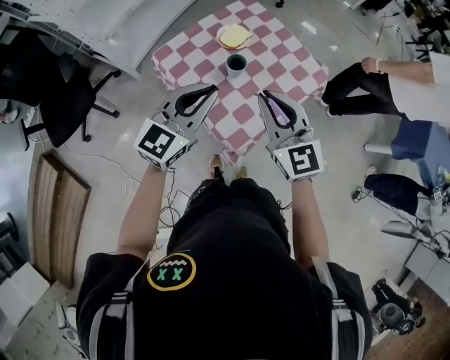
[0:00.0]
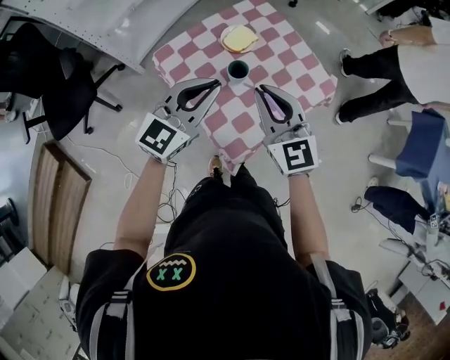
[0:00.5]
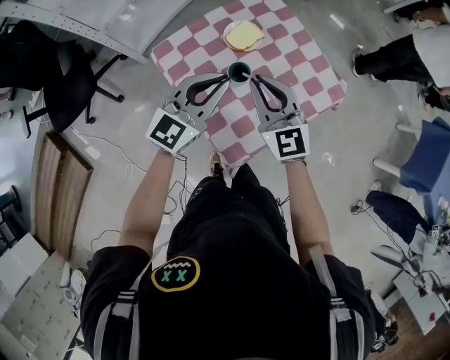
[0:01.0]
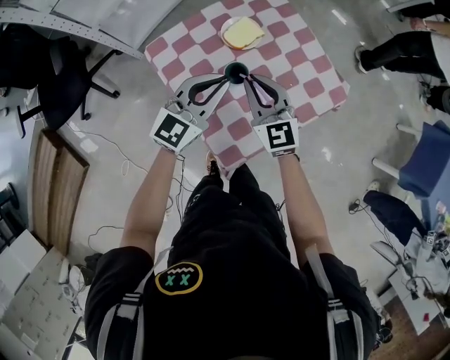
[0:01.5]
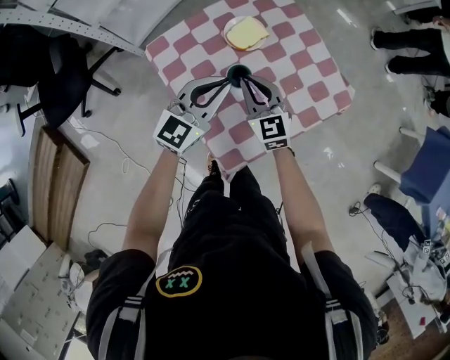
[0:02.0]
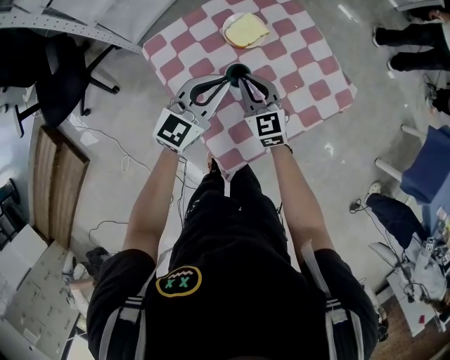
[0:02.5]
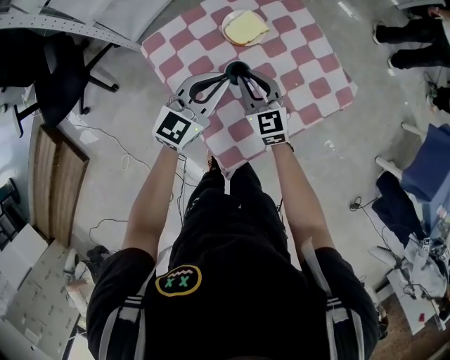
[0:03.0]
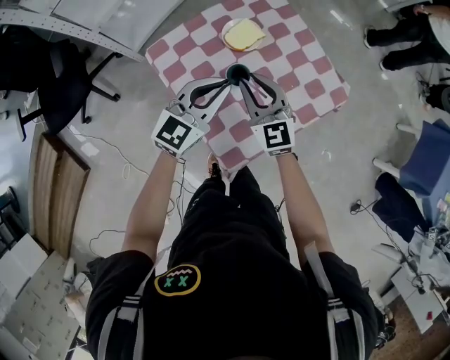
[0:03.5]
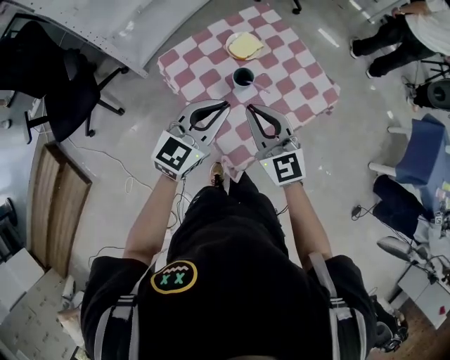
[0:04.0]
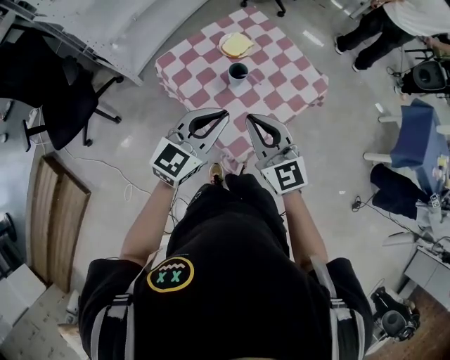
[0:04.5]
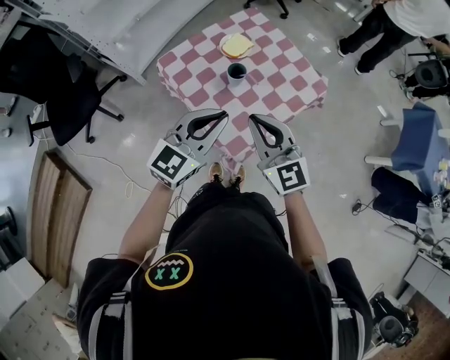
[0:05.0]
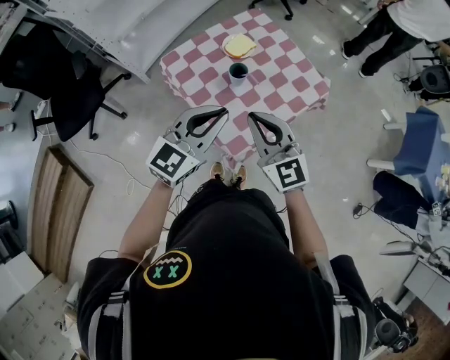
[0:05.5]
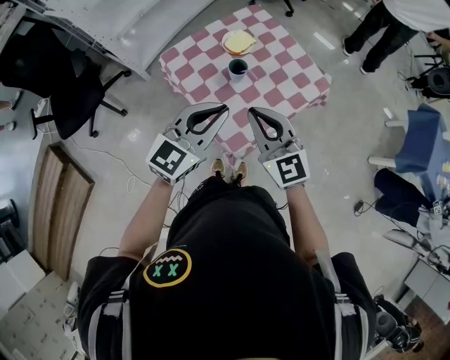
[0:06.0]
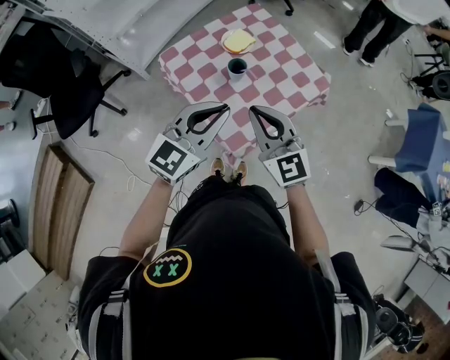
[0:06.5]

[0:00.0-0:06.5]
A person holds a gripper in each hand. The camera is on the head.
0:00.0 to 0:02.0: The left gripper goes roughly 20 cm forward and downward. The right gripper goes about 30 cm downward and forward.
0:02.0 to 0:04.5: Both grippers travel together backward and upward, approximately 25 cm.
0:04.5 to 0:06.5: The grippers stay close to where they were, moving slightly.

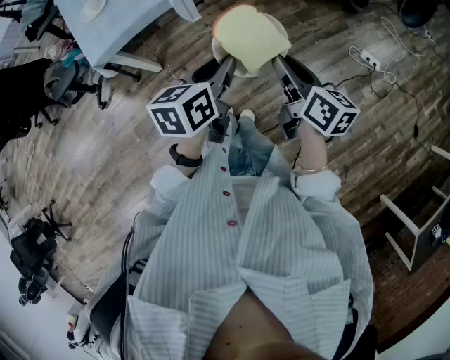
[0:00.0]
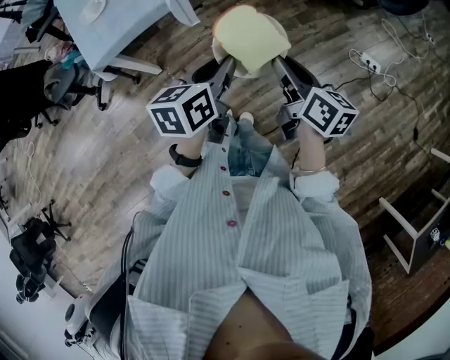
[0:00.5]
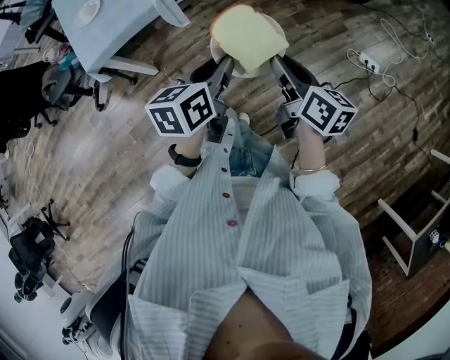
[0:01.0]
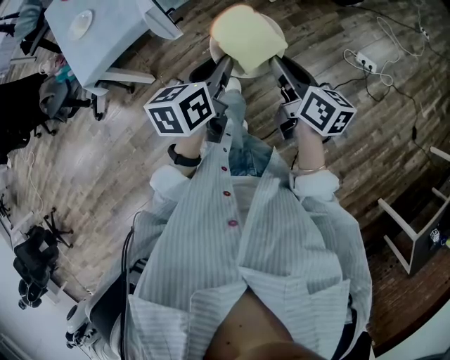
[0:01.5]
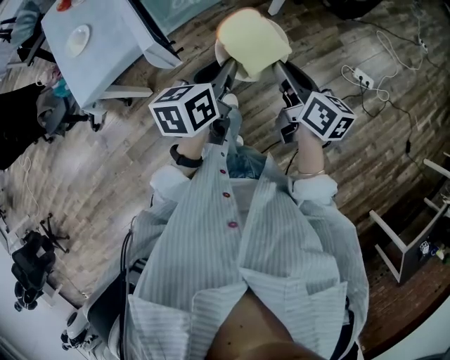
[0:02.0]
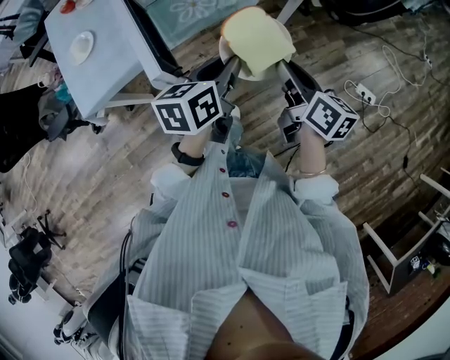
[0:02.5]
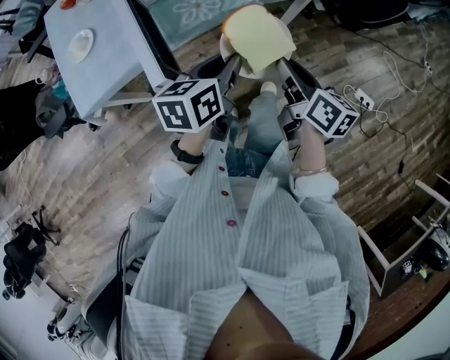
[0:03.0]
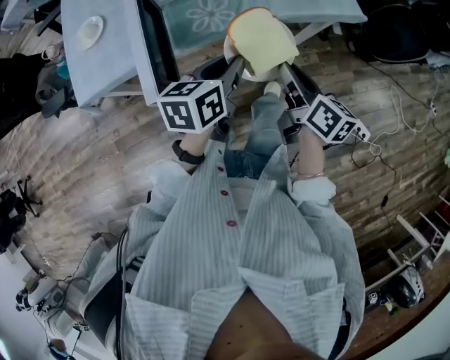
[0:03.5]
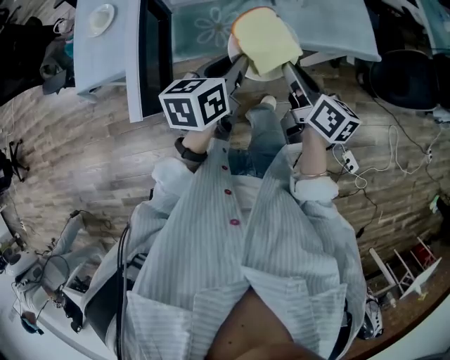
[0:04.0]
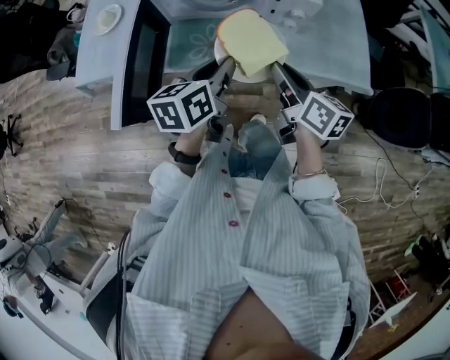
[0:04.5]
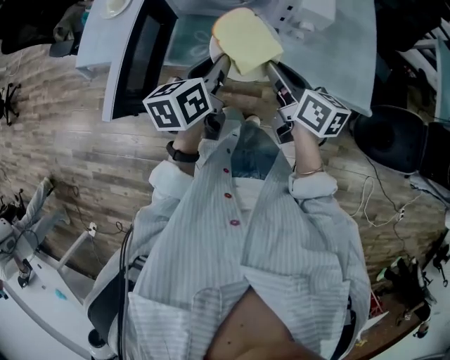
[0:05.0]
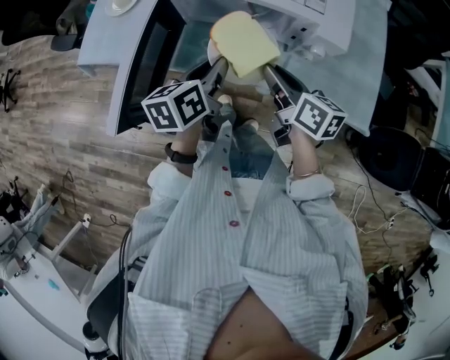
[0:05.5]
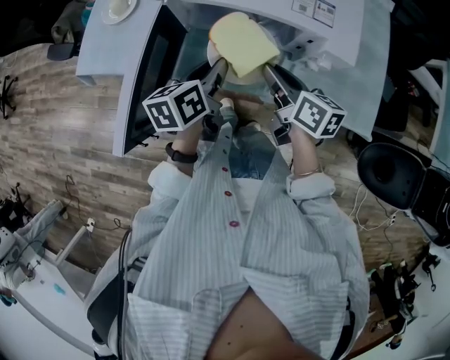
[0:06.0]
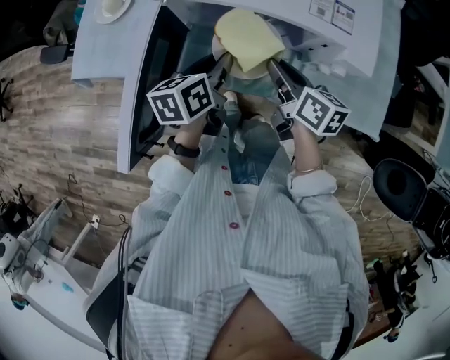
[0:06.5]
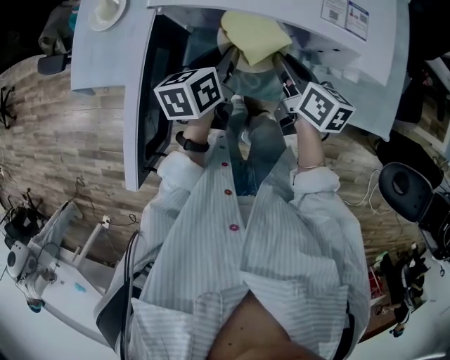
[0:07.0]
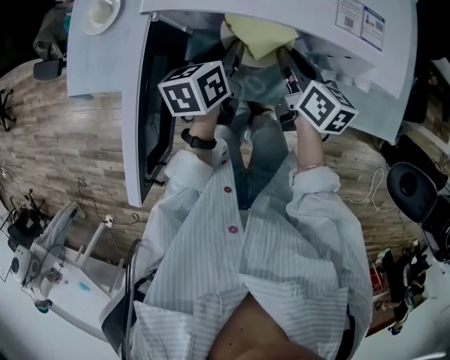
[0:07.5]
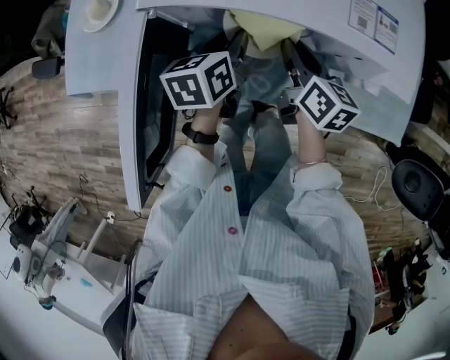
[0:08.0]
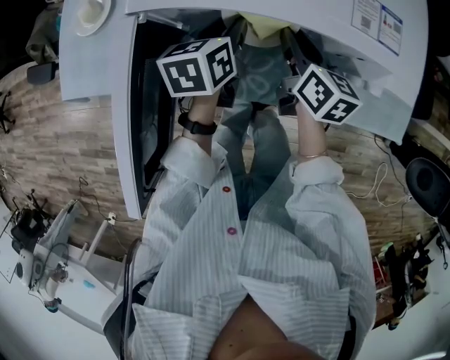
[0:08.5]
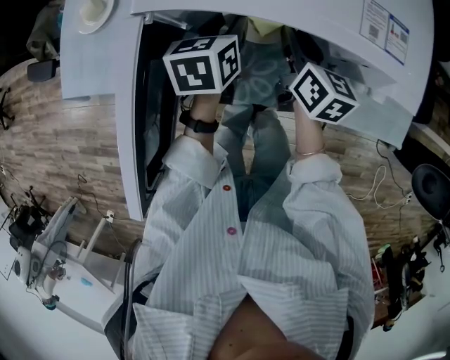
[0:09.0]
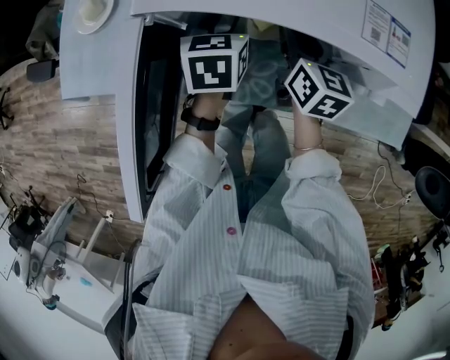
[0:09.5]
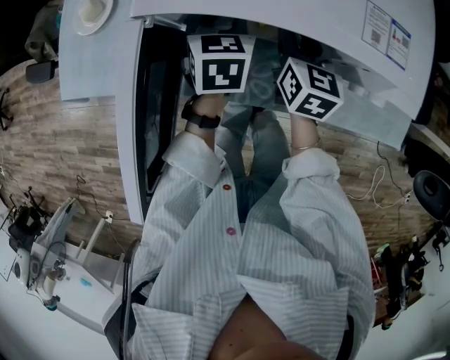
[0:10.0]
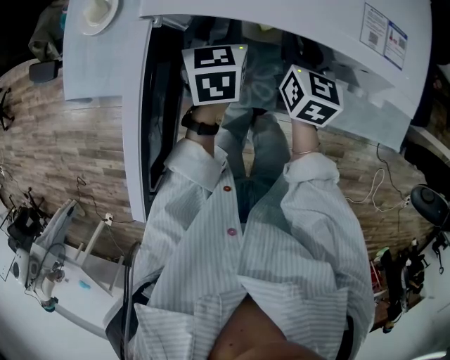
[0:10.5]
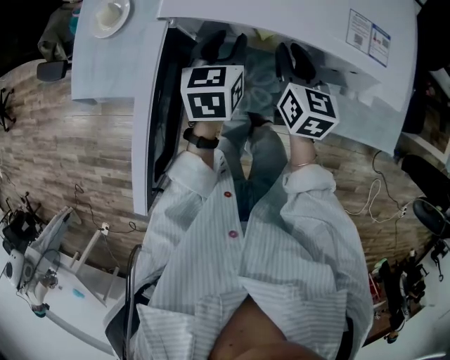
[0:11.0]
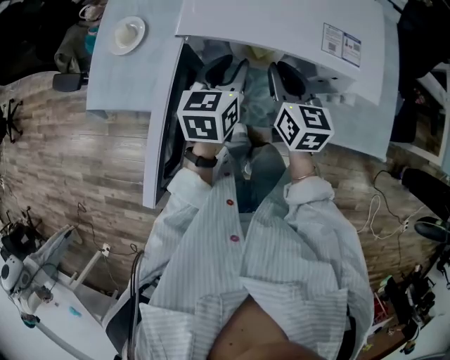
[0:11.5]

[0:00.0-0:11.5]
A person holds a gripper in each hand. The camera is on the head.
0:00.0 to 0:02.0: The two grippers go about 15 cm forward.
0:02.0 to 0:04.0: Both grippers travel together forward, some 25 cm. The right gripper turns by roughly 20 degrees; the left gripper rotates about 20 degrees.
0:04.0 to 0:06.0: The left gripper changes place by about 15 cm, and turns by about 30 degrees. Meanwhile the right gripper shifts by some 20 cm, and changes its angle by about 30 degrees.
0:06.0 to 0:07.5: Both grippers travel together forward and downward, approximately 10 cm.
0:07.5 to 0:09.5: Both grippers move forward, about 5 cm. The left gripper turns by about 30 degrees.
0:09.5 to 0:11.5: The two grippers go approximately 10 cm upward and backward.

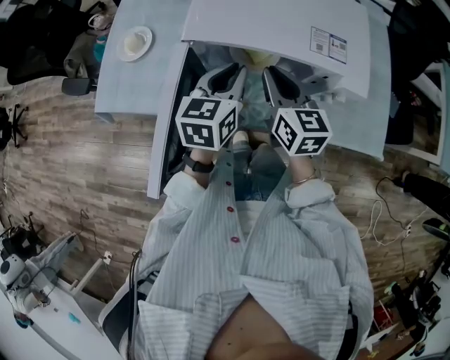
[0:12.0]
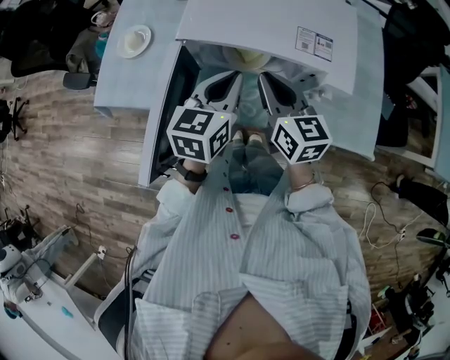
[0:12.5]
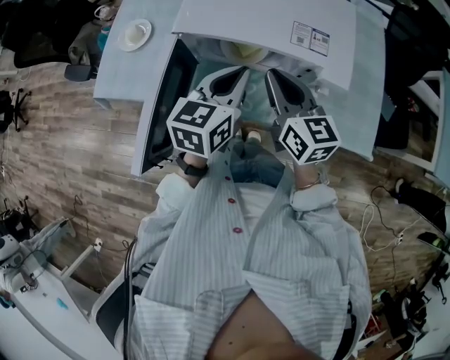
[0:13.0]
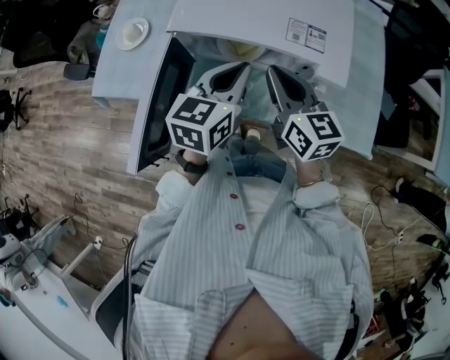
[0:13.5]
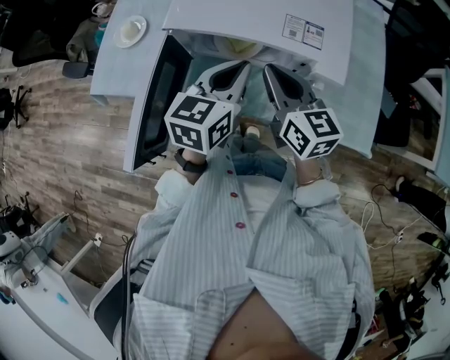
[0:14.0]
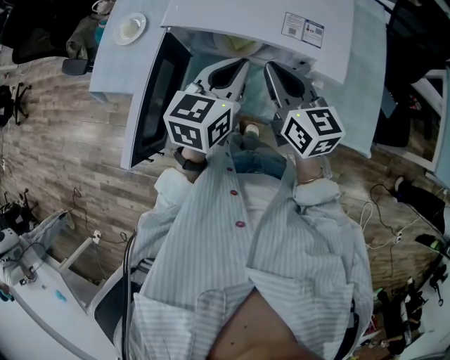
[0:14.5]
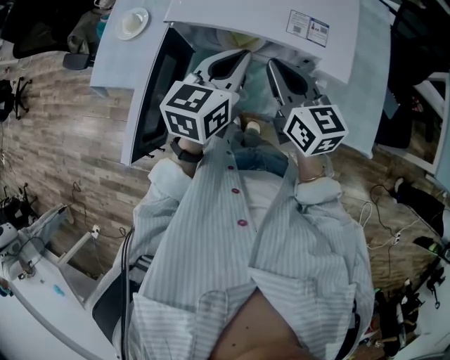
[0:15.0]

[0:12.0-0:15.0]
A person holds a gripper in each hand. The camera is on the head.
0:12.0 to 0:13.5: The left gripper heads to the right and upward, covering about 10 cm. Meanwhile the right gripper goes approximately 5 cm upward and to the right.
0:13.5 to 0:15.0: Neither gripper changes place.

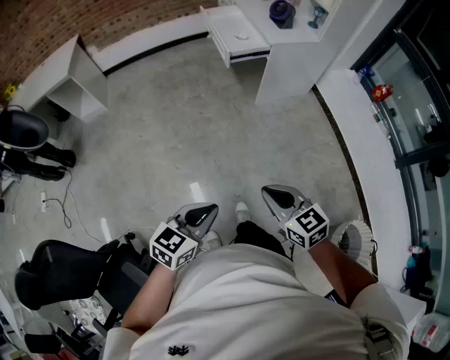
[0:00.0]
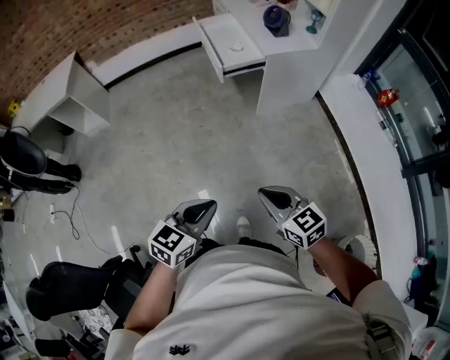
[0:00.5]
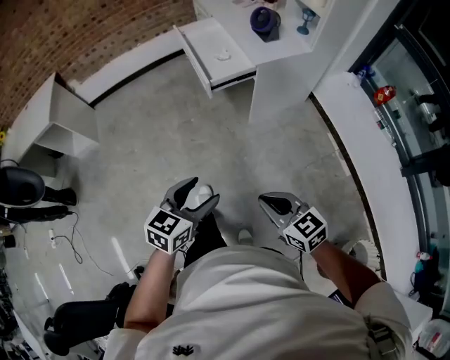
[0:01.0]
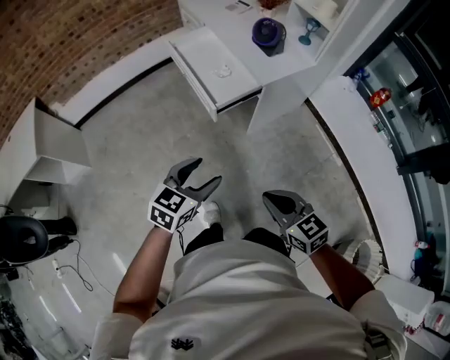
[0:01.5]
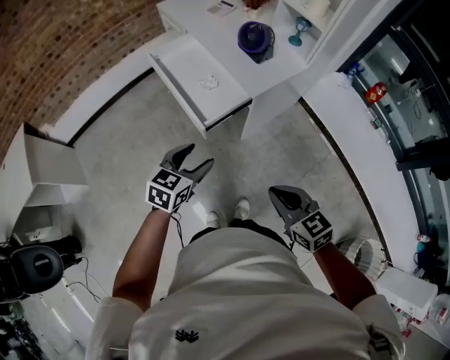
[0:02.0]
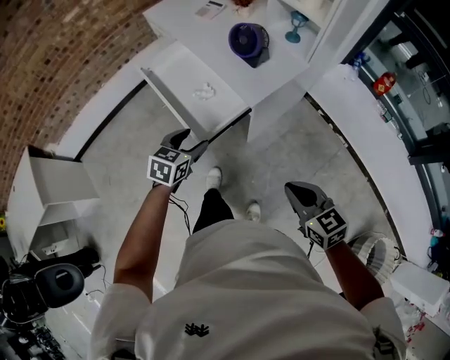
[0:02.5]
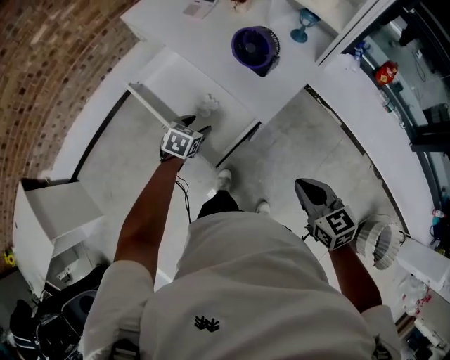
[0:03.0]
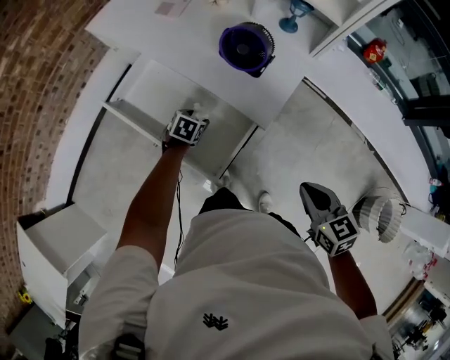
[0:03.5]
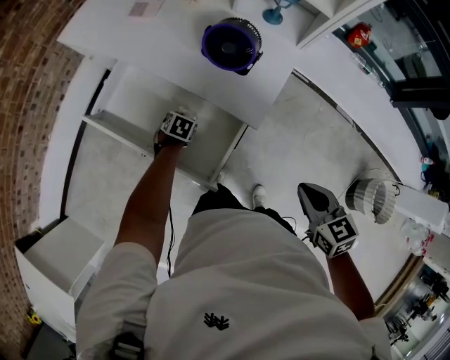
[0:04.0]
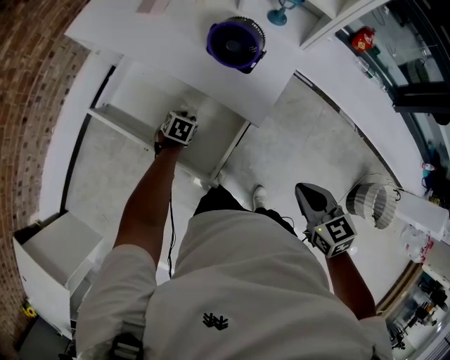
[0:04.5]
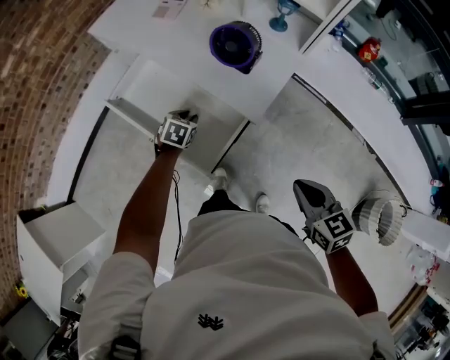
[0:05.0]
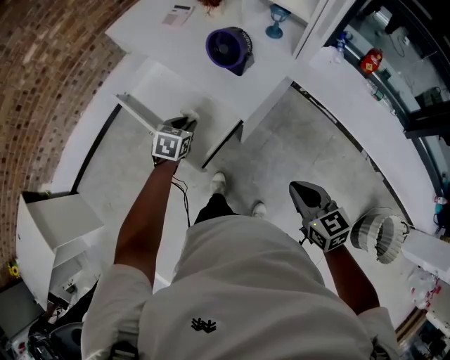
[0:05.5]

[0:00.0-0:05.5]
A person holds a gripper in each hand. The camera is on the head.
0:00.0 to 0:02.0: The two grippers travel together, forward, approximately 60 cm. The left gripper opens its fingers.
0:02.0 to 0:03.5: The right gripper is displaced forward by some 25 cm, and swivels about 30 degrees. The left gripper goes approximately 50 cm forward and downward, and tips its fingers downward by some 30 degrees.
0:03.5 to 0:05.5: The left gripper is displaced upward, backward and to the right by roughly 15 cm, and closes. Meanwhile the right gripper moves to the right and backward, about 10 cm.
